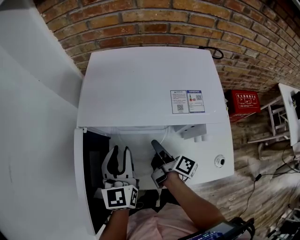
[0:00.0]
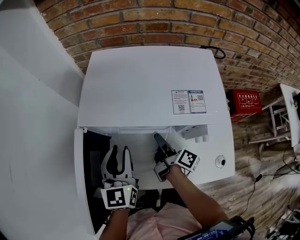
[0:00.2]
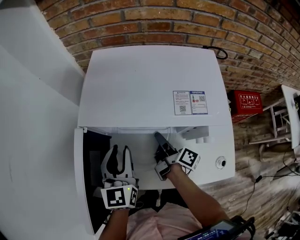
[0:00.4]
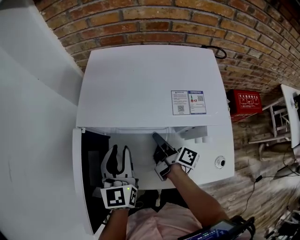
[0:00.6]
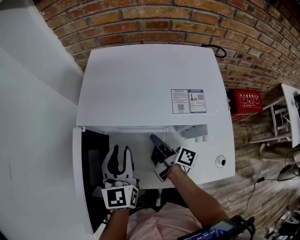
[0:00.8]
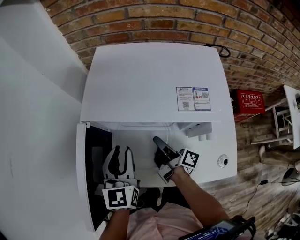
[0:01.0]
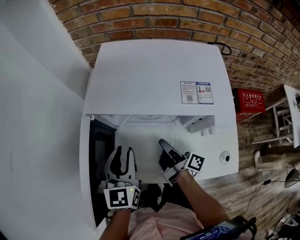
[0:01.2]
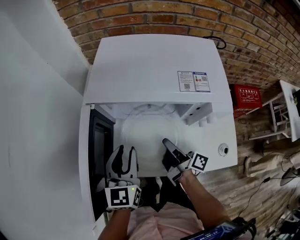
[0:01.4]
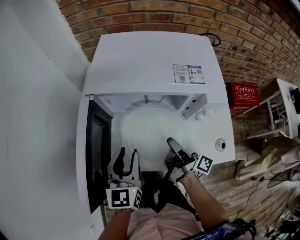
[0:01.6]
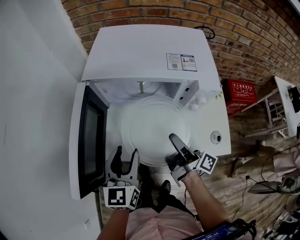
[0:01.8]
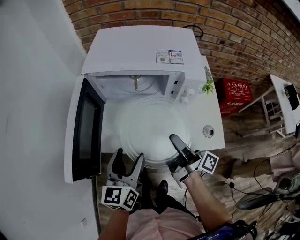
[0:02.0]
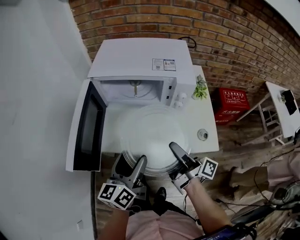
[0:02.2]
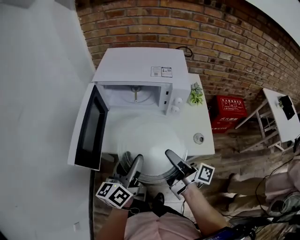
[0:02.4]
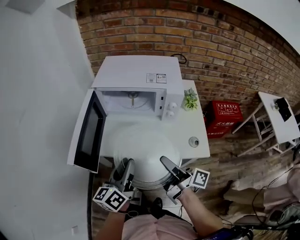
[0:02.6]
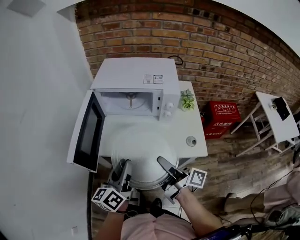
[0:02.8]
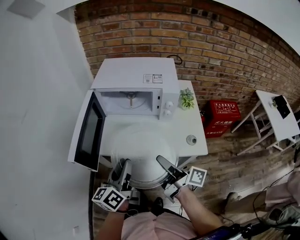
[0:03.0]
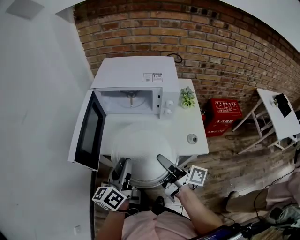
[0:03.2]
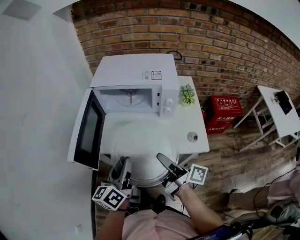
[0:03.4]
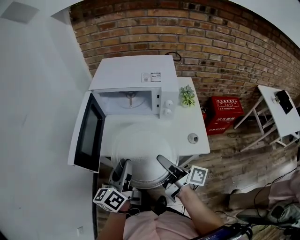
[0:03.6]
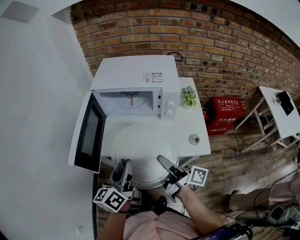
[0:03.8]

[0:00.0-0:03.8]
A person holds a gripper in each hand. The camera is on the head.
0:00.0 to 0:01.2: The grippers move only a little.
0:01.2 to 0:02.6: The left gripper is displaced backward by roughly 25 cm, swivels approximately 40 degrees, and opens, then closes again; the right gripper goes roughly 30 cm backward and upward.
0:02.6 to 0:03.8: The grippers make only small movements.

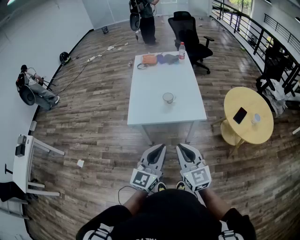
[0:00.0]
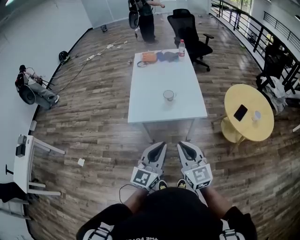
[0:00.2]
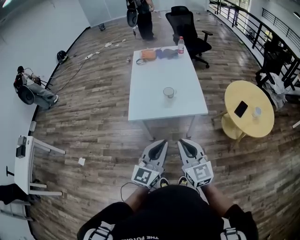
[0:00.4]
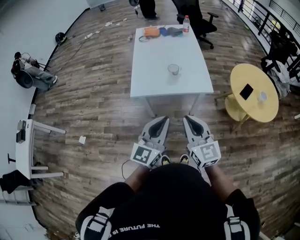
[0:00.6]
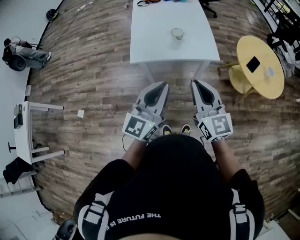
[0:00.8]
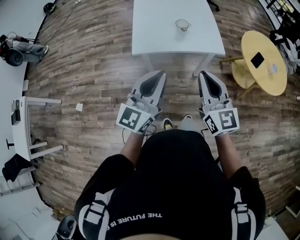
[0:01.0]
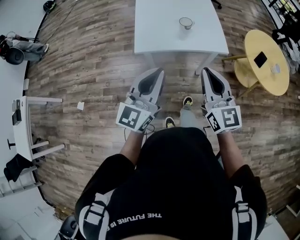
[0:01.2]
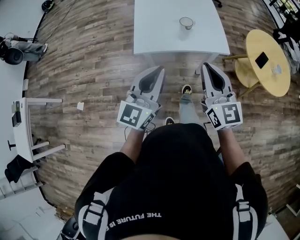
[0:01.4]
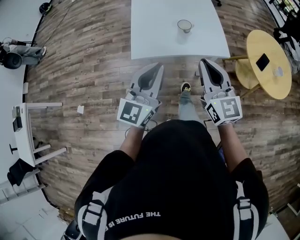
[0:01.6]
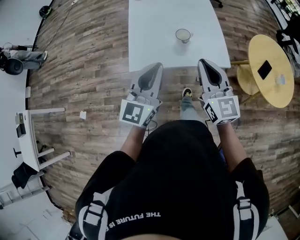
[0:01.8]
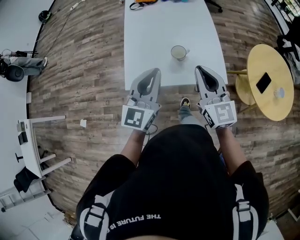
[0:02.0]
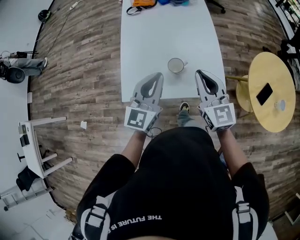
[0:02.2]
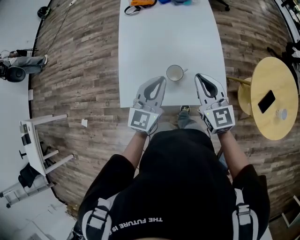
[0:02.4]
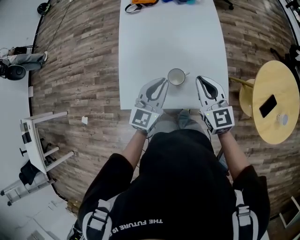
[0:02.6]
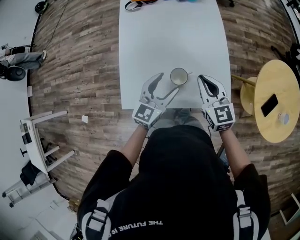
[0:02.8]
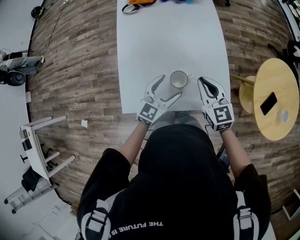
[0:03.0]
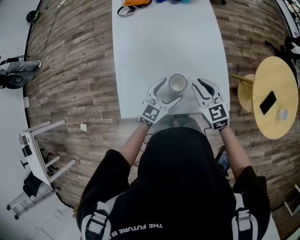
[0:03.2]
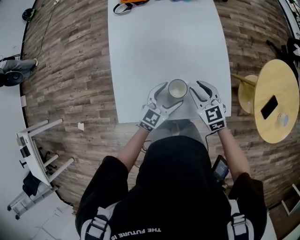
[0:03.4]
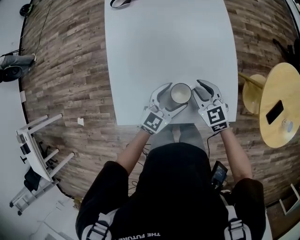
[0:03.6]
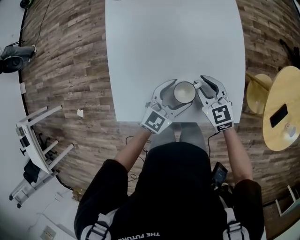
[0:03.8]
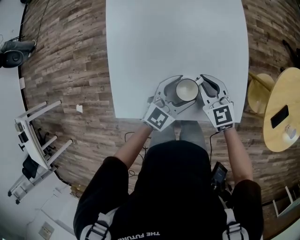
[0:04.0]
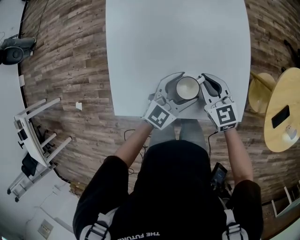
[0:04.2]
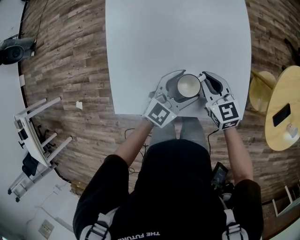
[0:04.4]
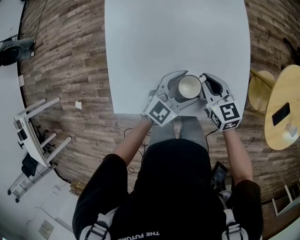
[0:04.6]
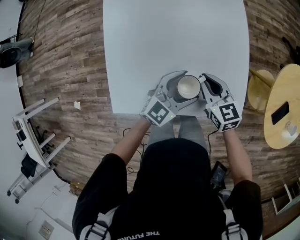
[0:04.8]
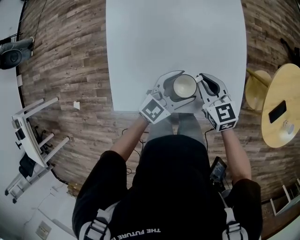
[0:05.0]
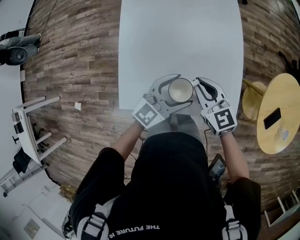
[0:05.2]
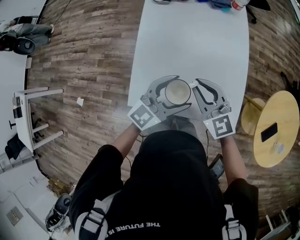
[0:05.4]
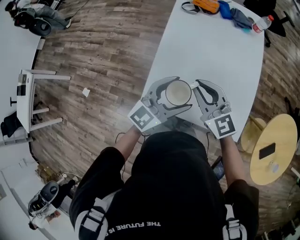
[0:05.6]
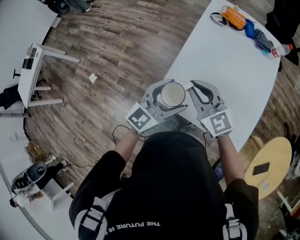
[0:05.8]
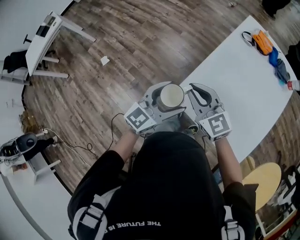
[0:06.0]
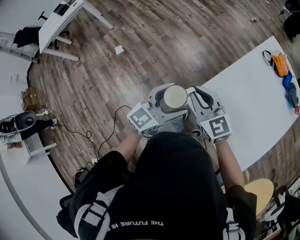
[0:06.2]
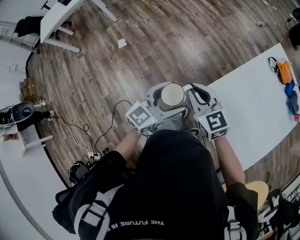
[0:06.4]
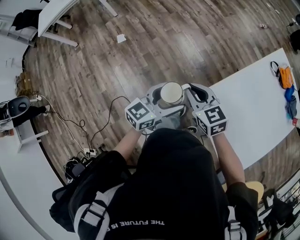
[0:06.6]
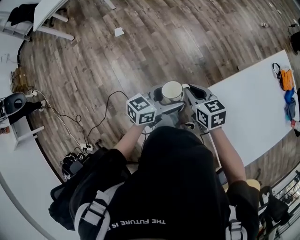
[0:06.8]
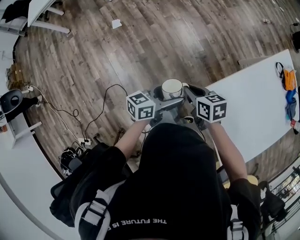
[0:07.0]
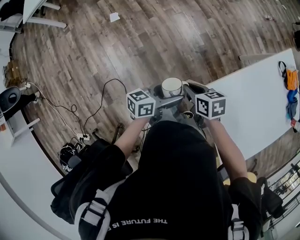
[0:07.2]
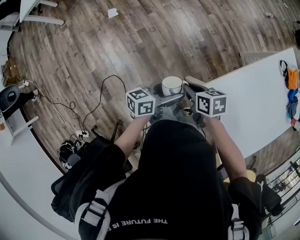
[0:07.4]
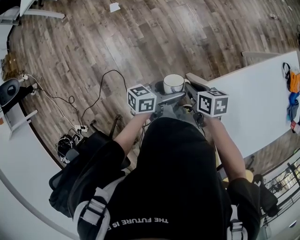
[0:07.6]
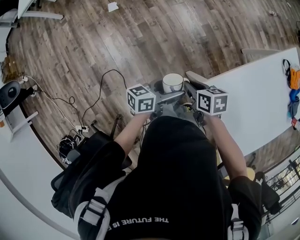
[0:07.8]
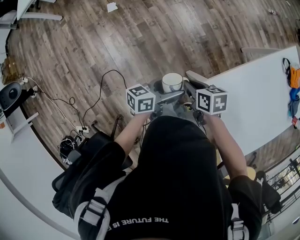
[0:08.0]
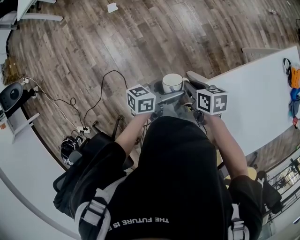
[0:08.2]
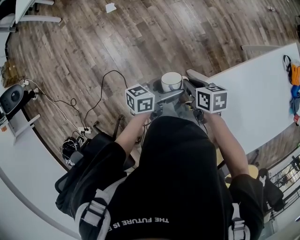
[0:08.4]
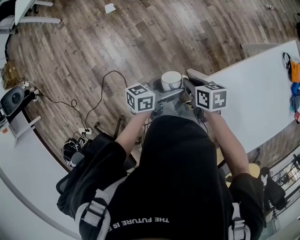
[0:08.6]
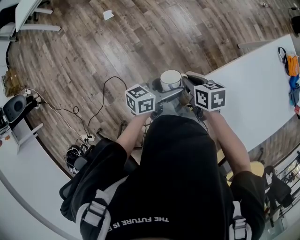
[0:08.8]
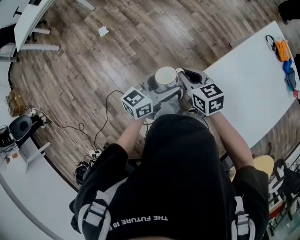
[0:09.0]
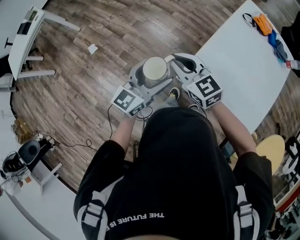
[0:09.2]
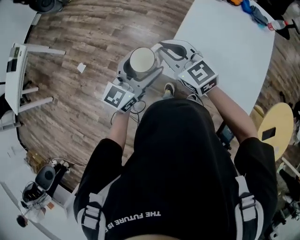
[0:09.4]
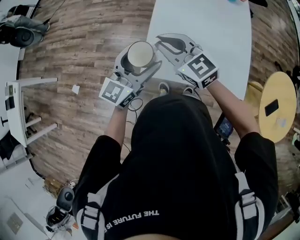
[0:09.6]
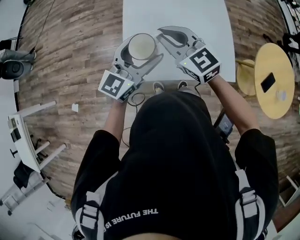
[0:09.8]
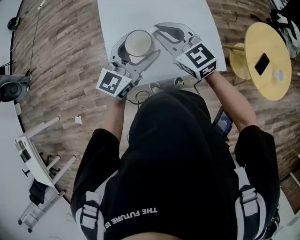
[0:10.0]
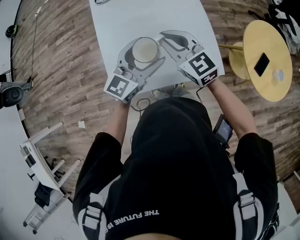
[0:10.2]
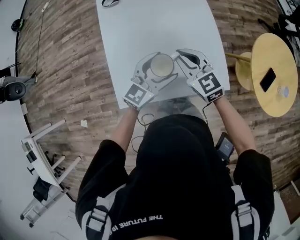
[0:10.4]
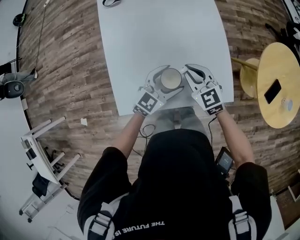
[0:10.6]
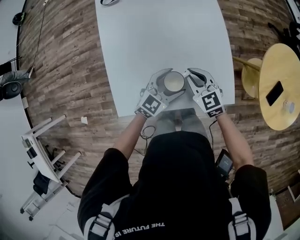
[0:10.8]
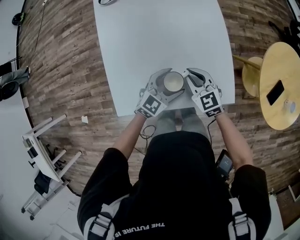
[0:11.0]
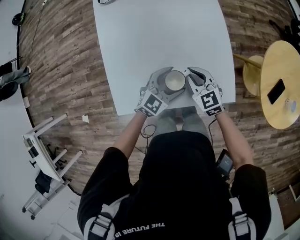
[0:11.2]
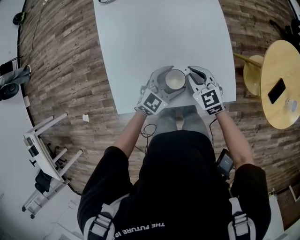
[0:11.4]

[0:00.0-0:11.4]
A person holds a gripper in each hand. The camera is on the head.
0:00.0 to 0:01.4: The right gripper is displaced forward and to the left by about 10 cm. Meanwhile the left gripper shifts roughly 15 cm to the left and forward.
0:01.4 to 0:02.8: The two grippers travel together, forward, some 40 cm. The right gripper changes its angle by approximately 20 degrees. Meanwhile the left gripper moves downward, approximately 20 cm, turns by about 20 degrees, and opens its fingers.
0:02.8 to 0:04.2: Both grippers move downward, roughly 15 cm.
0:04.2 to 0:05.6: The two grippers go some 25 cm upward and to the left. The left gripper swivels about 20 degrees. Meanwhile the right gripper changes its angle by approximately 30 degrees.
0:05.6 to 0:07.2: The right gripper shifts by about 40 cm, and tilts its fingers roughly 40 degrees downward, while the left gripper changes place by some 40 cm, and twists some 60 degrees counterclockwise, seen from behind.
0:07.2 to 0:08.6: The grippers make only small movements.
0:08.6 to 0:10.0: The two grippers travel together, roughly 40 cm. The left gripper changes its angle by some 80 degrees. Meanwhile the right gripper points its fingers about 40 degrees further upward.
0:10.0 to 0:11.4: Both grippers travel together downward and to the right, about 25 cm. The left gripper turns by approximately 30 degrees.

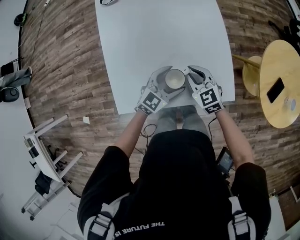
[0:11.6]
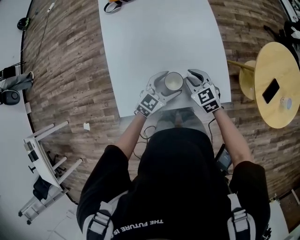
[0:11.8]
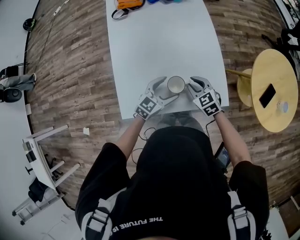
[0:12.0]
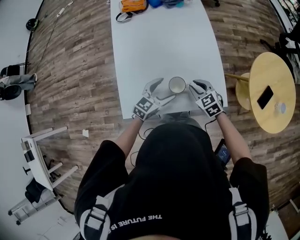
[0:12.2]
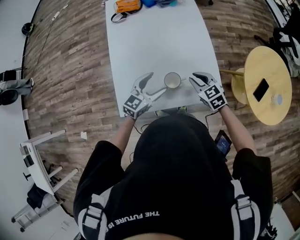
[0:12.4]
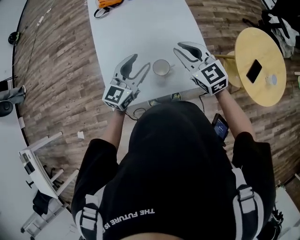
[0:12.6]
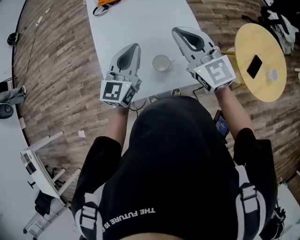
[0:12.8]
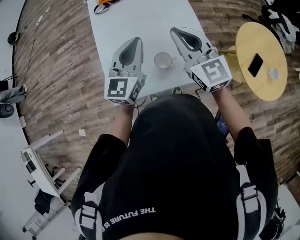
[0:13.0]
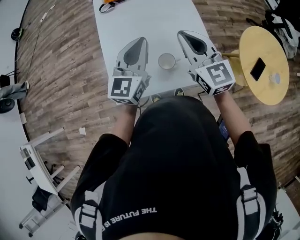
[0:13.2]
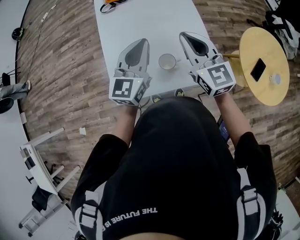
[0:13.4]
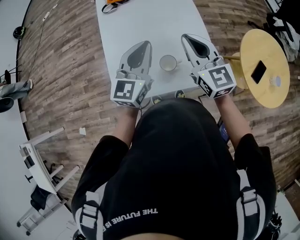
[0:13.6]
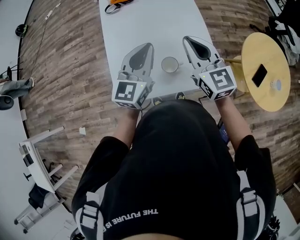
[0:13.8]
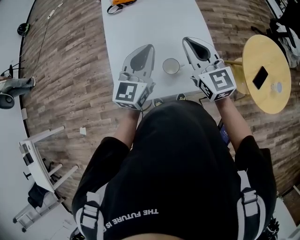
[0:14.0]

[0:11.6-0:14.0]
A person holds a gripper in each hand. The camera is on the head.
0:11.6 to 0:12.8: Both grippers move upward, some 25 cm. The right gripper swivels about 30 degrees. The left gripper swivels approximately 30 degrees, and closes its fingers.
0:12.8 to 0:14.0: The grippers make only small movements.

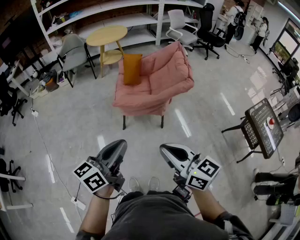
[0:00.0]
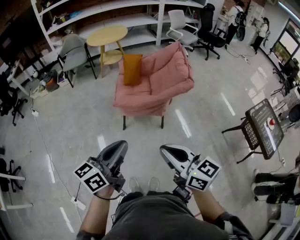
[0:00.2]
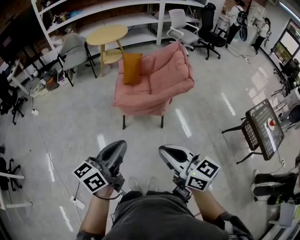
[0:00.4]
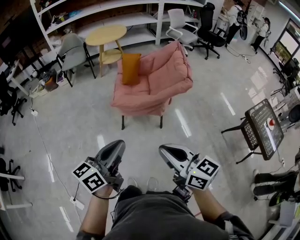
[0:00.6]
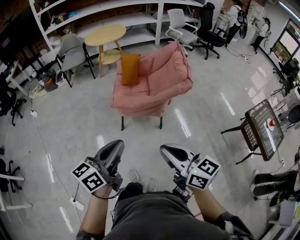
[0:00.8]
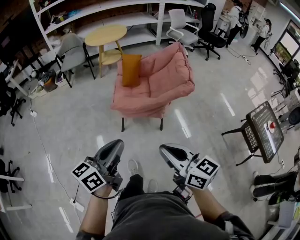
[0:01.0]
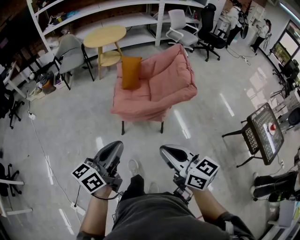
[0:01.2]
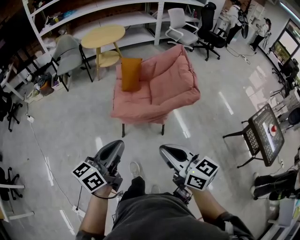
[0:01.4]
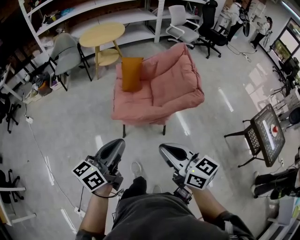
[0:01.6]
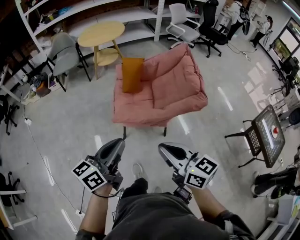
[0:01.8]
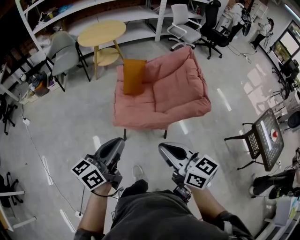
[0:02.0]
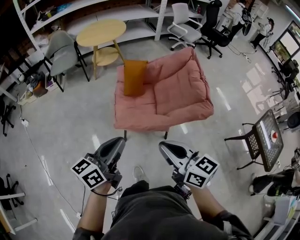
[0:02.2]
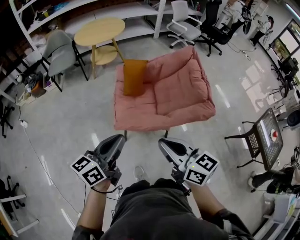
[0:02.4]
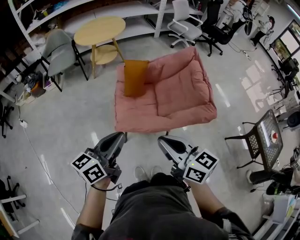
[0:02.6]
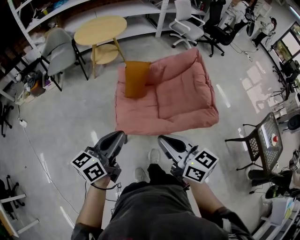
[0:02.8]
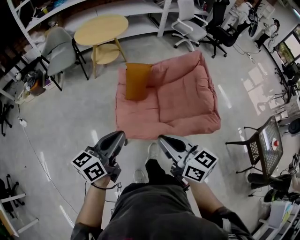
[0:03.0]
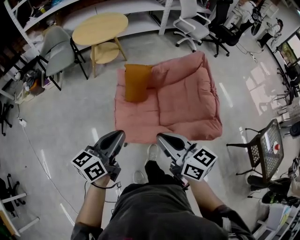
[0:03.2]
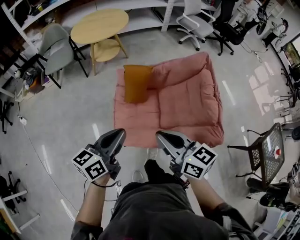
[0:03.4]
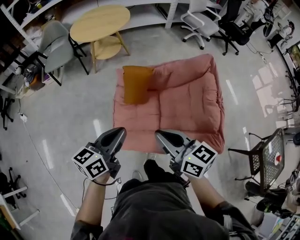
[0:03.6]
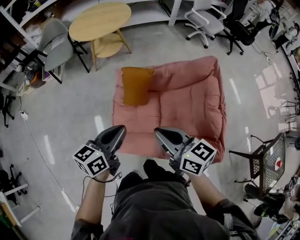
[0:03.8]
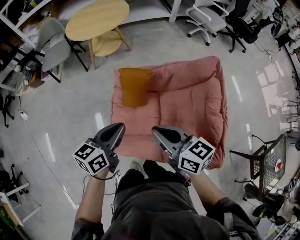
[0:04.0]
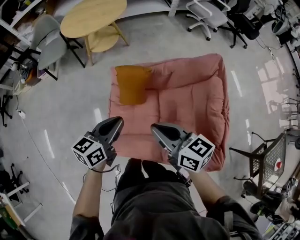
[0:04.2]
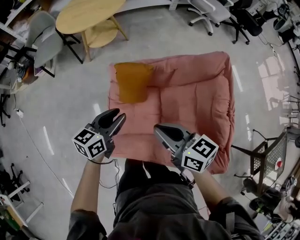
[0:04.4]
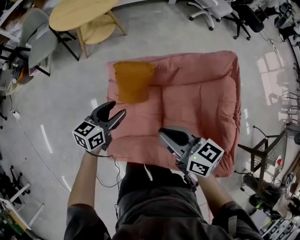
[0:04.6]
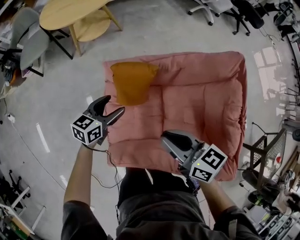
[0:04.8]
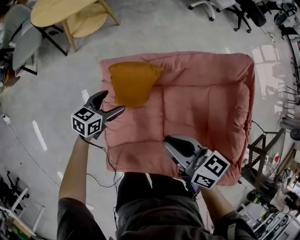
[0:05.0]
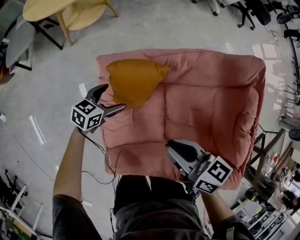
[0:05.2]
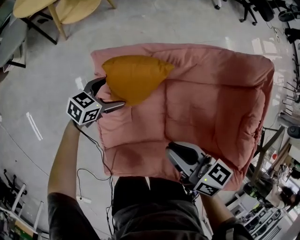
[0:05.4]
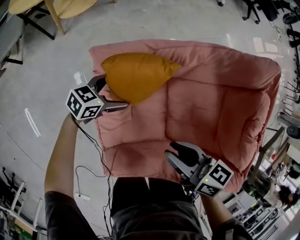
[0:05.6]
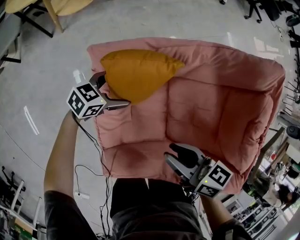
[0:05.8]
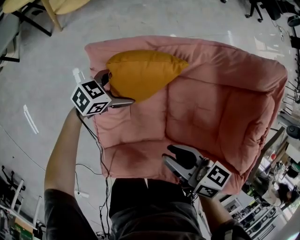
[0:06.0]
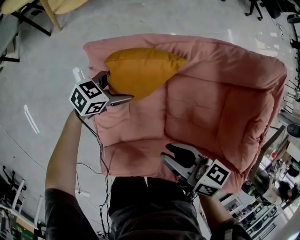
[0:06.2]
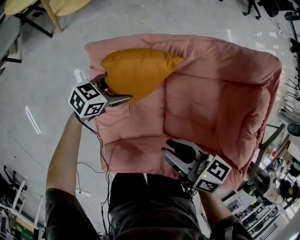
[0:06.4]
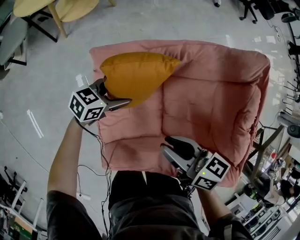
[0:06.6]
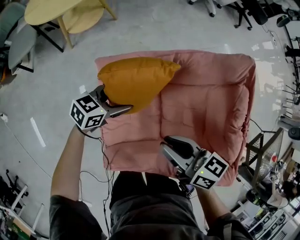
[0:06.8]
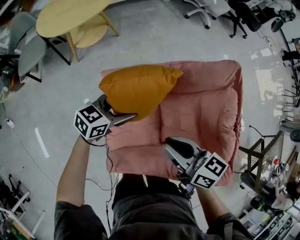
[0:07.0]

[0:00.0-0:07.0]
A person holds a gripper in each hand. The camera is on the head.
0:00.0 to 0:01.4: The two grippers go approximately 15 cm forward.
0:01.4 to 0:02.8: The two grippers go some 25 cm forward.
0:02.8 to 0:04.2: Both grippers travel together forward, approximately 30 cm.
0:04.2 to 0:05.6: The right gripper goes about 20 cm downward, and changes its angle by approximately 30 degrees, while the left gripper goes roughly 35 cm downward, turns by approximately 40 degrees, and opens.
0:05.6 to 0:07.0: The right gripper goes some 15 cm upward; the left gripper travels upward by some 20 cm.
